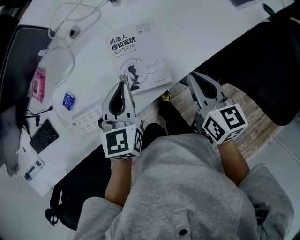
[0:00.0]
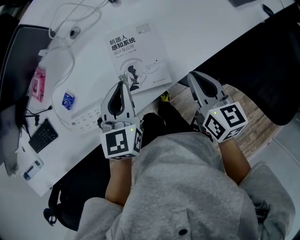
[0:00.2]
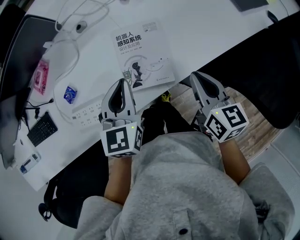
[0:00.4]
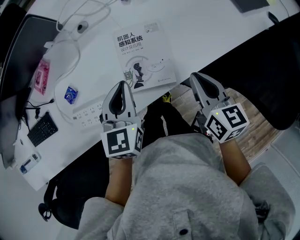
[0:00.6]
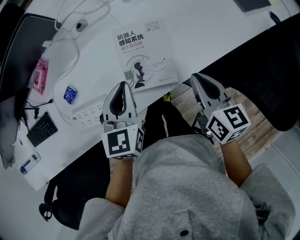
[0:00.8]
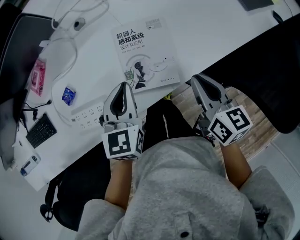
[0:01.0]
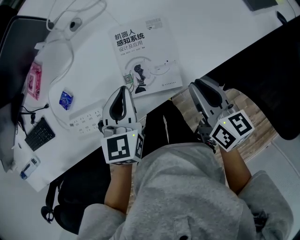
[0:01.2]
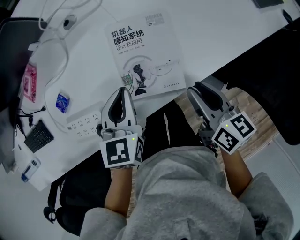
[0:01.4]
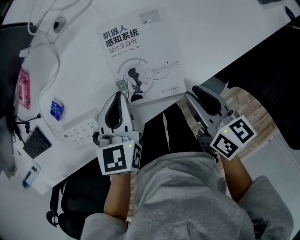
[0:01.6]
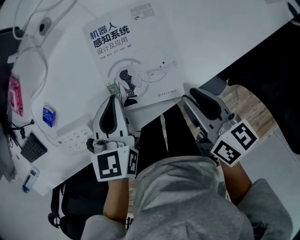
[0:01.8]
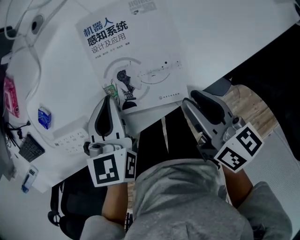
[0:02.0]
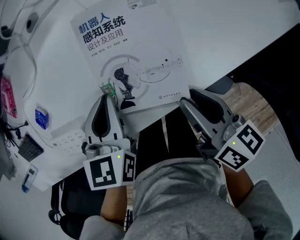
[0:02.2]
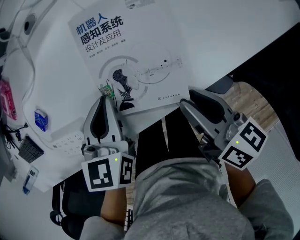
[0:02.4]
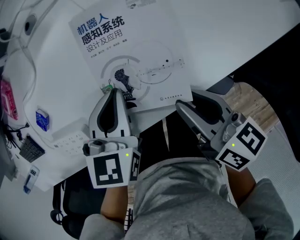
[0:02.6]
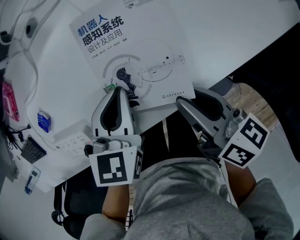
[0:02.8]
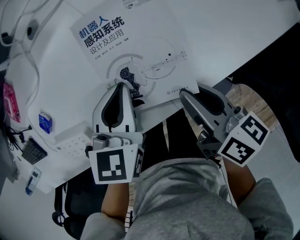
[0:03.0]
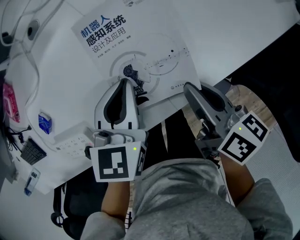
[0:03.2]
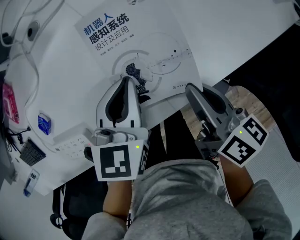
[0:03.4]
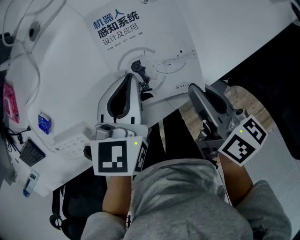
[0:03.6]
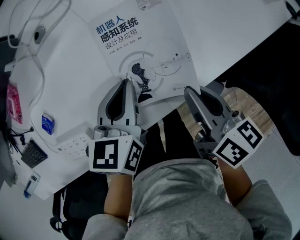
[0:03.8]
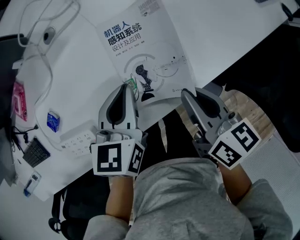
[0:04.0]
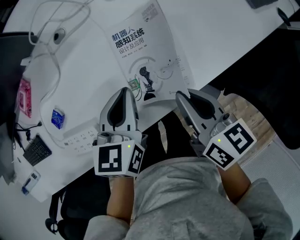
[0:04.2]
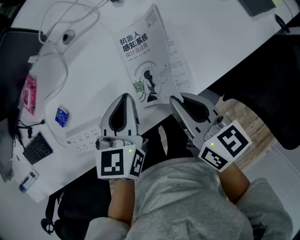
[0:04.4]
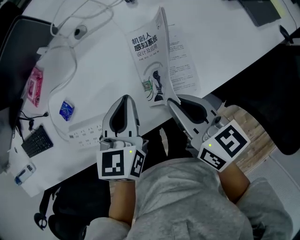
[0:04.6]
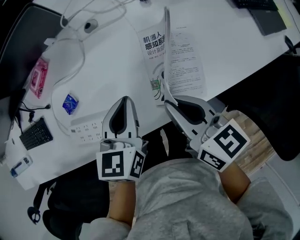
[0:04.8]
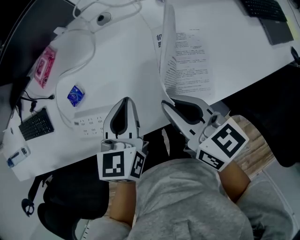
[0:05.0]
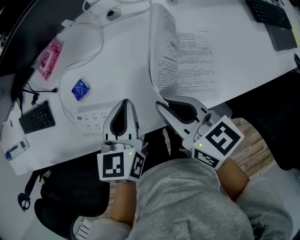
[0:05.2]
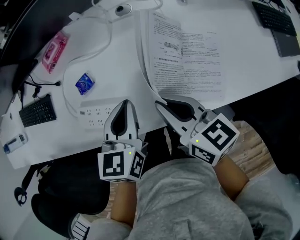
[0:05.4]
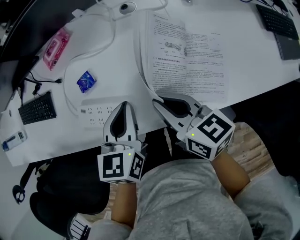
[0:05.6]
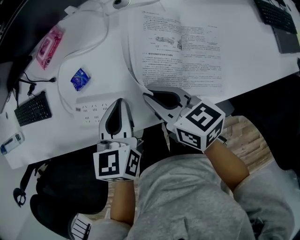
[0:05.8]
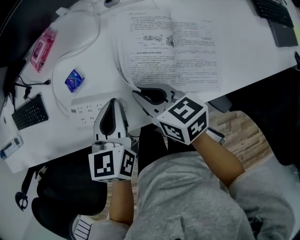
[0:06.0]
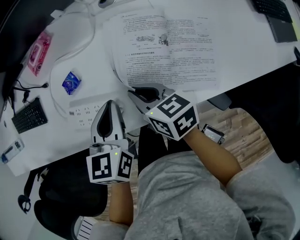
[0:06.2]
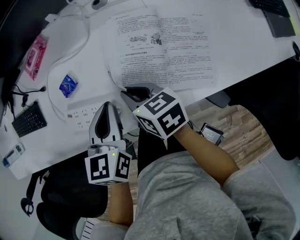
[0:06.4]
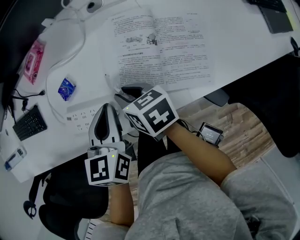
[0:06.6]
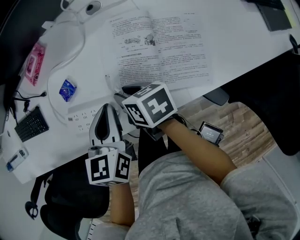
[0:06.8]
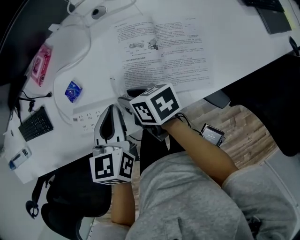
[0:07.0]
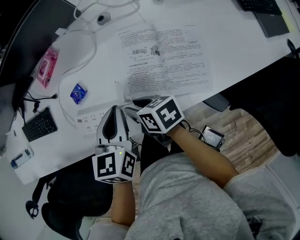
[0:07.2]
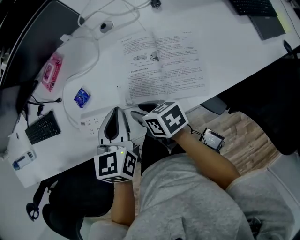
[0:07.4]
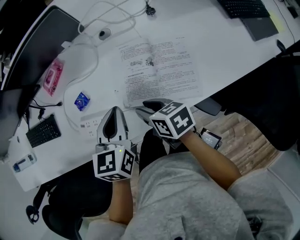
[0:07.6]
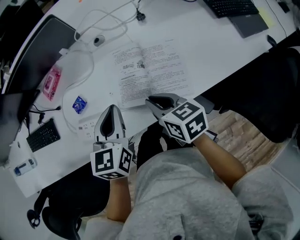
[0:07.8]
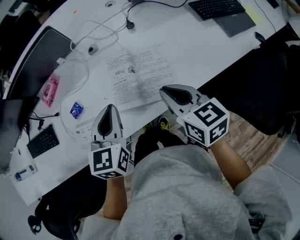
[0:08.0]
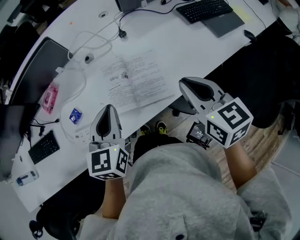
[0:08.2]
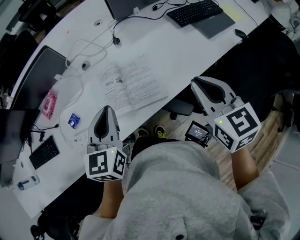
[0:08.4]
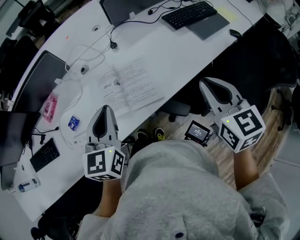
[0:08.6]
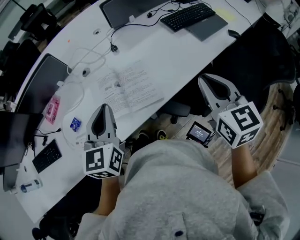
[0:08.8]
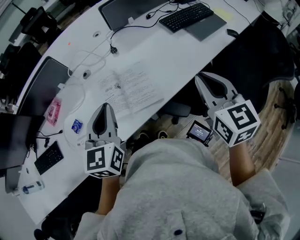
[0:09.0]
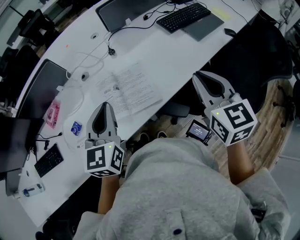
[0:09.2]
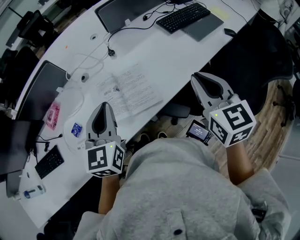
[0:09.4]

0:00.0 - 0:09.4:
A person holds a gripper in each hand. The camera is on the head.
0:00.0 - 0:01.6: The two grippers go roughly 10 cm downward. The right gripper opens up.
0:01.6 - 0:03.2: The left gripper changes place by roughly 5 cm.
0:03.2 - 0:04.8: Both grippers travel together upward and to the left, some 15 cm. The right gripper changes its angle by roughly 30 degrees.
0:04.8 - 0:06.2: The right gripper travels to the left and downward by roughly 15 cm. Meanwhile the left gripper is displaced to the left by approximately 10 cm.
0:06.2 - 0:07.8: The right gripper goes about 15 cm to the right, upward and backward, and opens, then closes again, while the left gripper travels upward and to the right by about 10 cm.
0:07.8 - 0:09.4: The right gripper shifts by some 35 cm, and rotates roughly 50 degrees. The left gripper moves upward, some 10 cm, and rotates some 20 degrees.

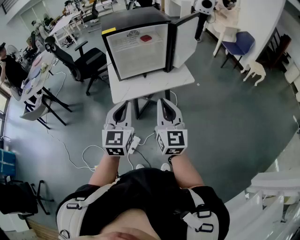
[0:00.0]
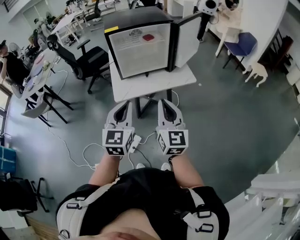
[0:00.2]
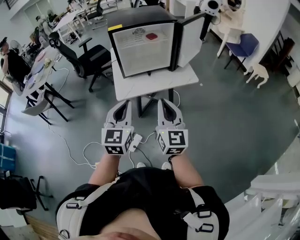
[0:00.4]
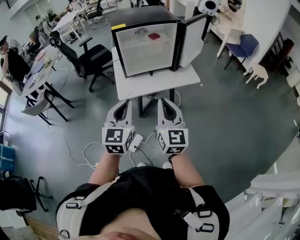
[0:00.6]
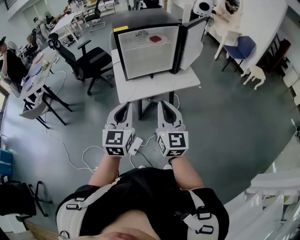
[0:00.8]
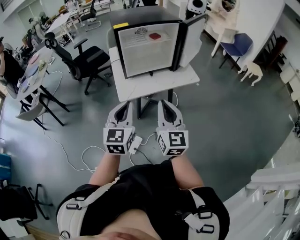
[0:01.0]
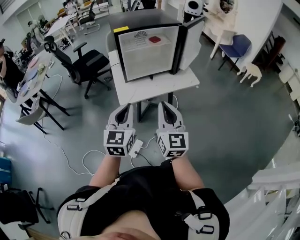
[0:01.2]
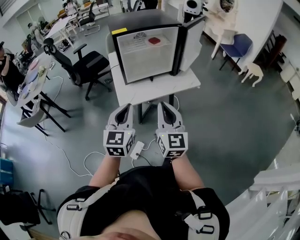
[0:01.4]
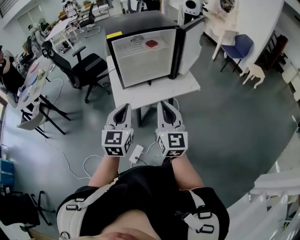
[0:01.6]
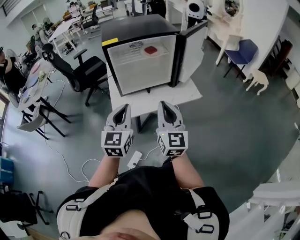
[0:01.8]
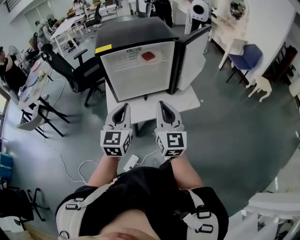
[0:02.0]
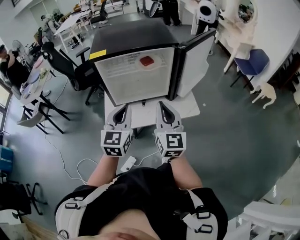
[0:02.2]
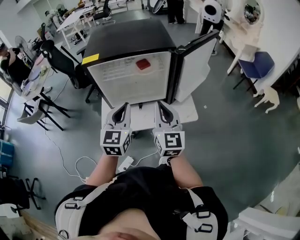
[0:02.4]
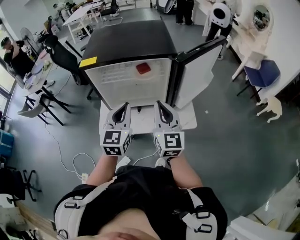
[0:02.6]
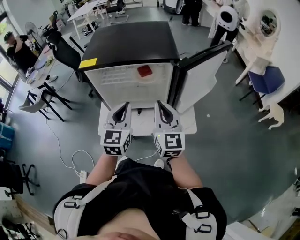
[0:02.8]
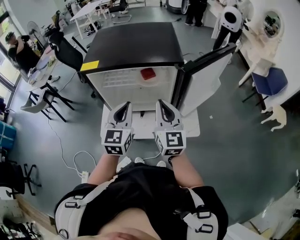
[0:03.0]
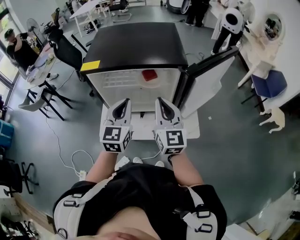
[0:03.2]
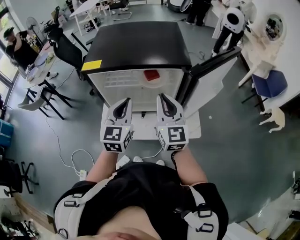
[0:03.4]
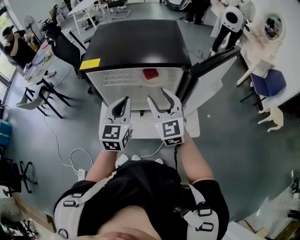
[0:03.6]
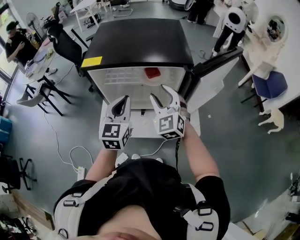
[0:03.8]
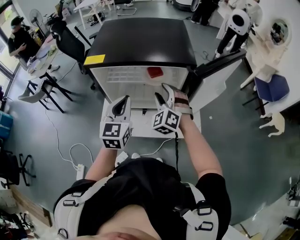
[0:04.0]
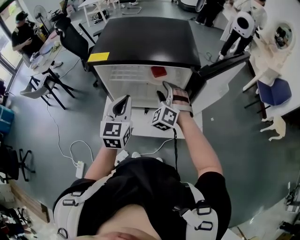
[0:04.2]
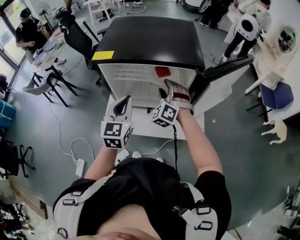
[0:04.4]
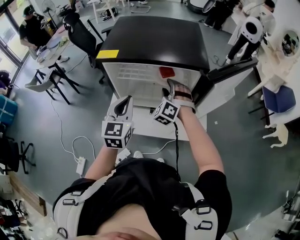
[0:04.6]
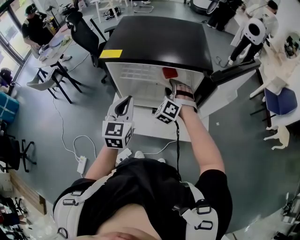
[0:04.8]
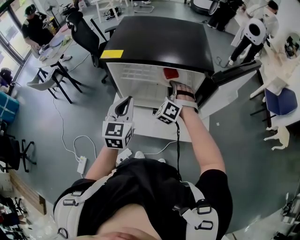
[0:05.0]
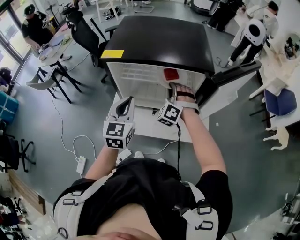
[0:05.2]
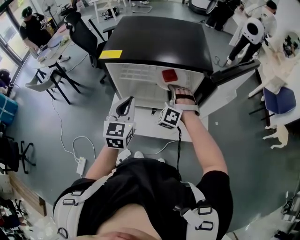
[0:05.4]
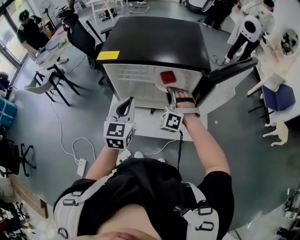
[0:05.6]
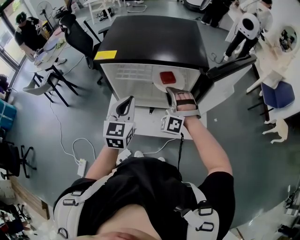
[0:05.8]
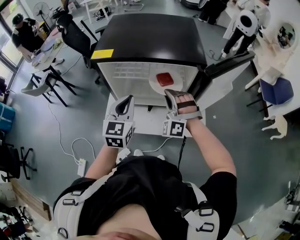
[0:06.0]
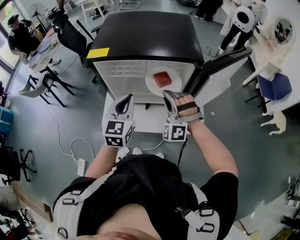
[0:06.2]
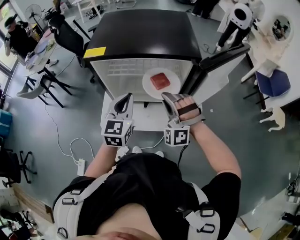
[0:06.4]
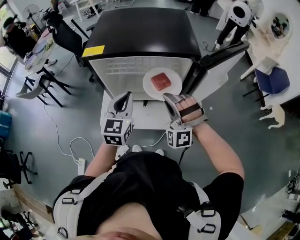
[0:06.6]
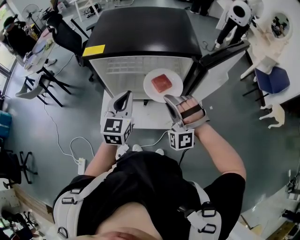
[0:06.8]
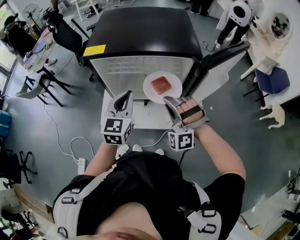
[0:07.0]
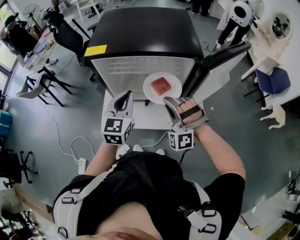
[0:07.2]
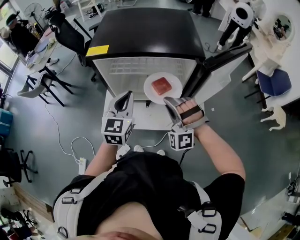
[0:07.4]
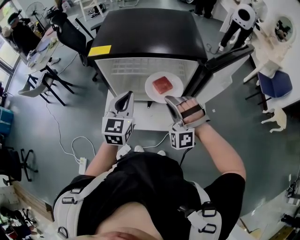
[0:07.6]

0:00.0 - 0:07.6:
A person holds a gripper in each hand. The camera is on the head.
0:00.0 - 0:01.6: Both grippers move forward and to the left, some 10 cm.
0:01.6 - 0:03.0: The two grippers go some 30 cm forward and to the right.
0:03.0 - 0:04.6: The left gripper travels to the left by some 5 cm, while the right gripper goes about 20 cm forward and downward, rolls counterclockwise, seen from behind, by some 70 degrees, and opens.
0:04.6 - 0:06.0: The right gripper travels backward by approximately 5 cm, and closes.
0:06.0 - 0:07.6: The right gripper heads backward, covering roughly 5 cm.

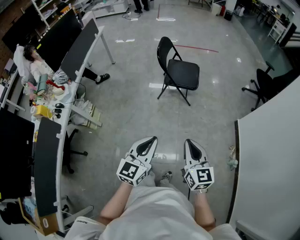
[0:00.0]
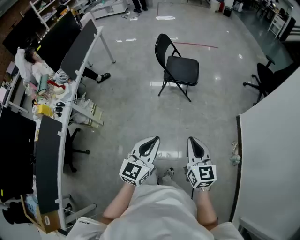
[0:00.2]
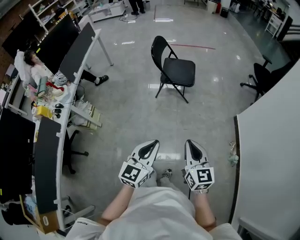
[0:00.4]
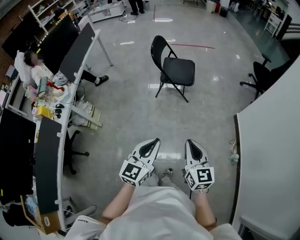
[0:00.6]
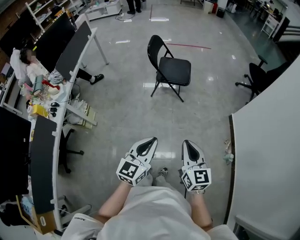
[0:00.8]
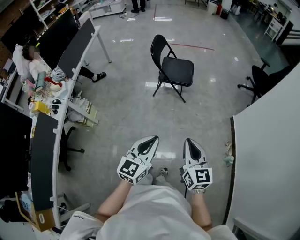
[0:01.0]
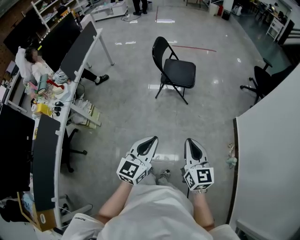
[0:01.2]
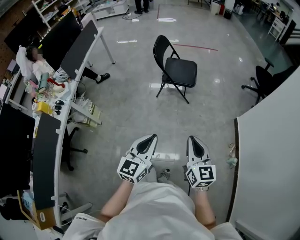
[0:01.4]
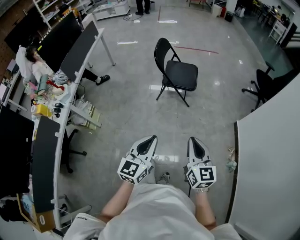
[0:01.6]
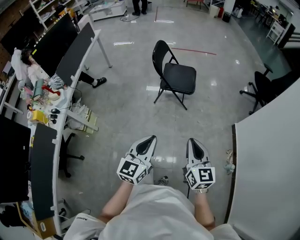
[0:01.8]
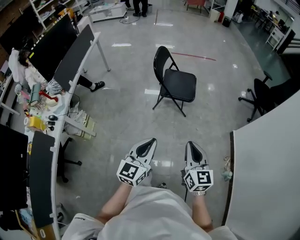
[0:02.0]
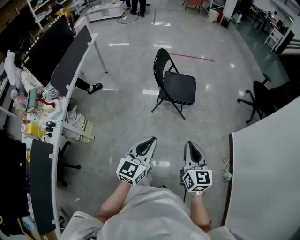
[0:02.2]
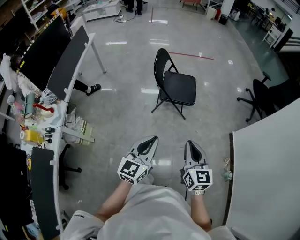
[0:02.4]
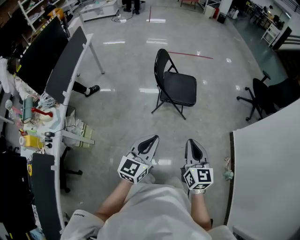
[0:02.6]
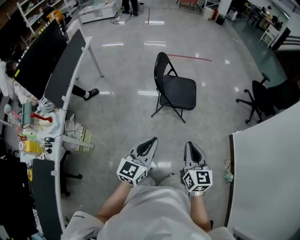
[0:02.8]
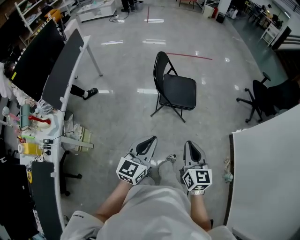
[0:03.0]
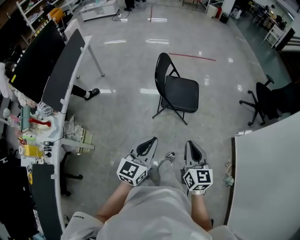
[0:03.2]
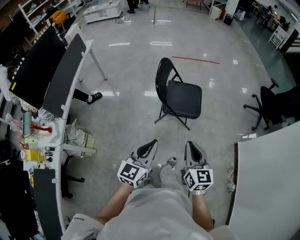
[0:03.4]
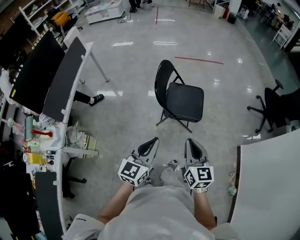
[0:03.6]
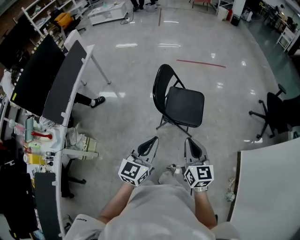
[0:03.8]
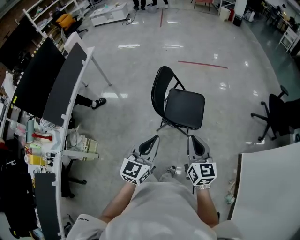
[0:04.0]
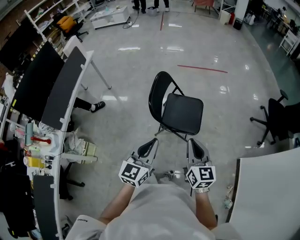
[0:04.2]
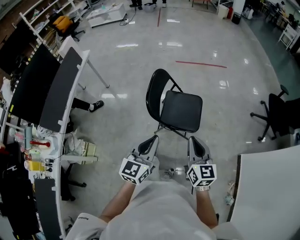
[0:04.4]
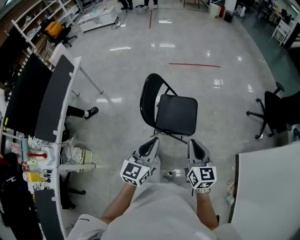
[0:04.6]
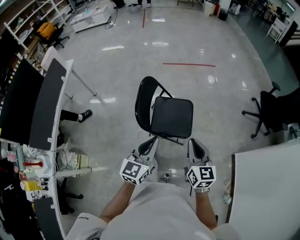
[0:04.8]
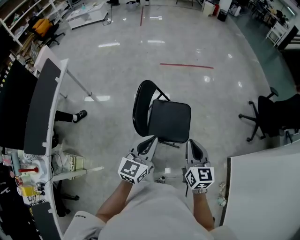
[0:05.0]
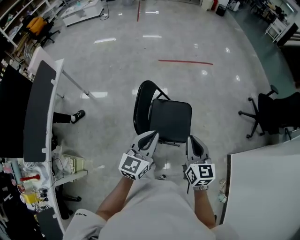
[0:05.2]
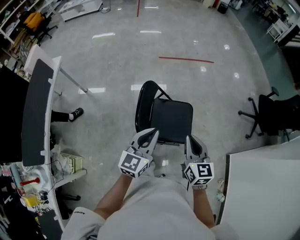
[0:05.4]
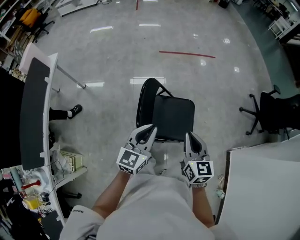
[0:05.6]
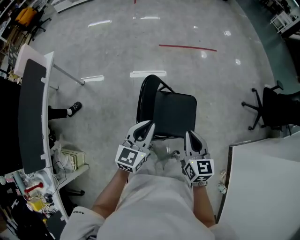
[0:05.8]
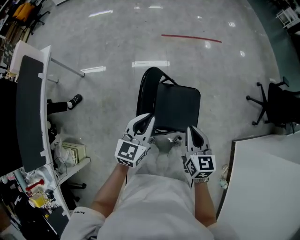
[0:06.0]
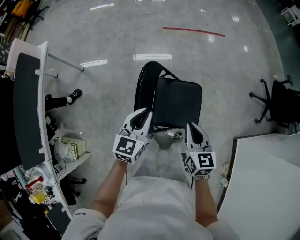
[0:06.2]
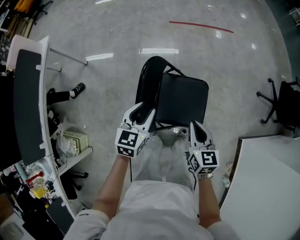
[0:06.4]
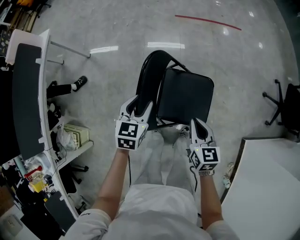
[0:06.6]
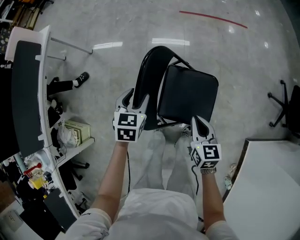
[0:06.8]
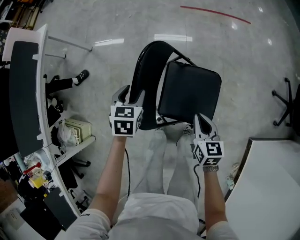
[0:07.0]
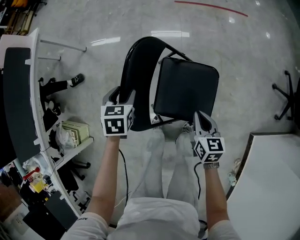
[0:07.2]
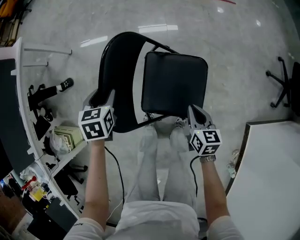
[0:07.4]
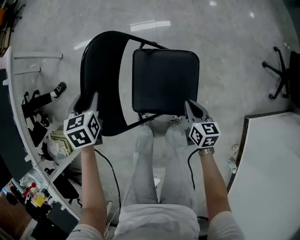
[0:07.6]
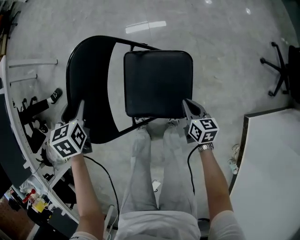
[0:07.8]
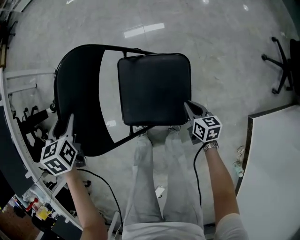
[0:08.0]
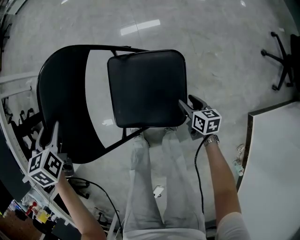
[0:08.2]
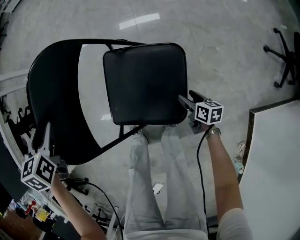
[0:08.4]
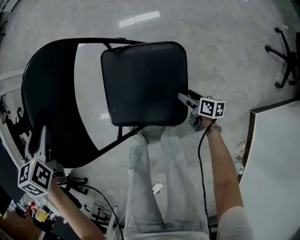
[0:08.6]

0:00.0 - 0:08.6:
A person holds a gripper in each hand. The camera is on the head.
0:00.0 - 0:01.4: Both grippers move to the right, some 5 cm.
0:01.4 - 0:02.8: Both grippers move forward and to the left, some 30 cm.
0:02.8 - 0:04.4: Both grippers travel together forward, about 30 cm.
0:04.4 - 0:05.8: Both grippers move forward, approximately 30 cm.
0:05.8 - 0:07.2: The grippers both shift downward by about 25 cm. The left gripper tips its fingers downward by roughly 40 degrees, and opens up.
0:07.2 - 0:08.6: The right gripper is displaced downward and to the right by approximately 40 cm, turns by some 40 degrees, and opens.
